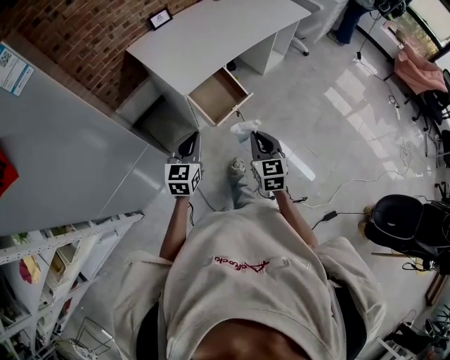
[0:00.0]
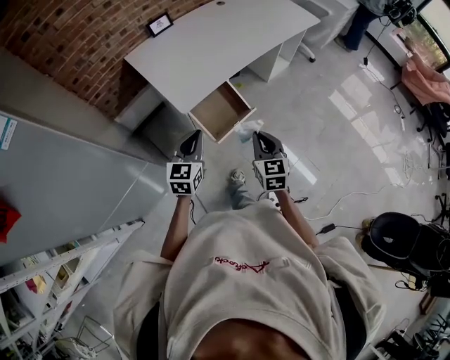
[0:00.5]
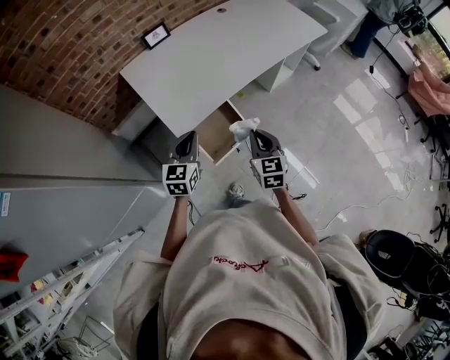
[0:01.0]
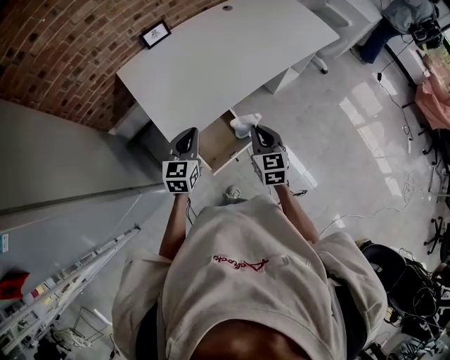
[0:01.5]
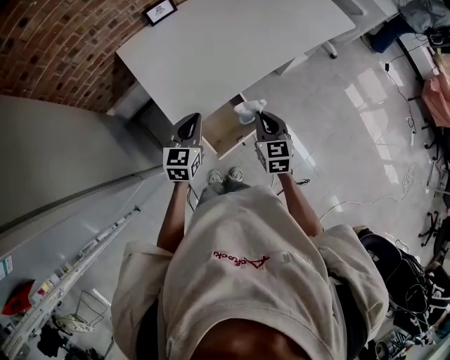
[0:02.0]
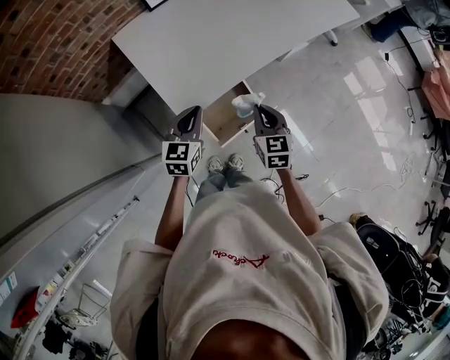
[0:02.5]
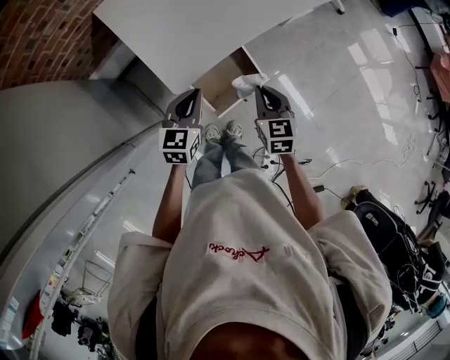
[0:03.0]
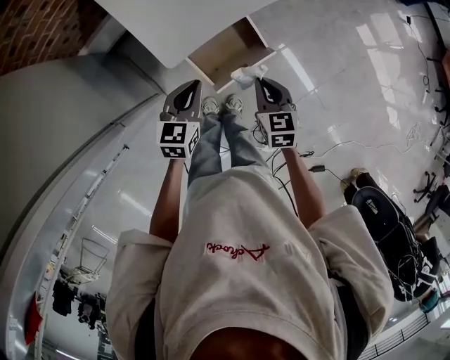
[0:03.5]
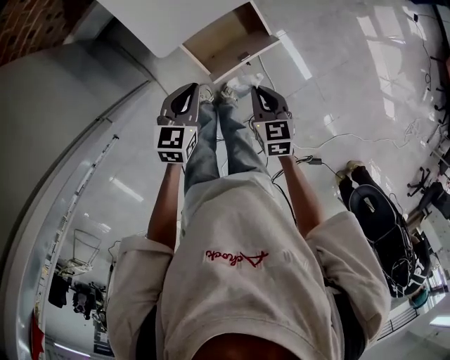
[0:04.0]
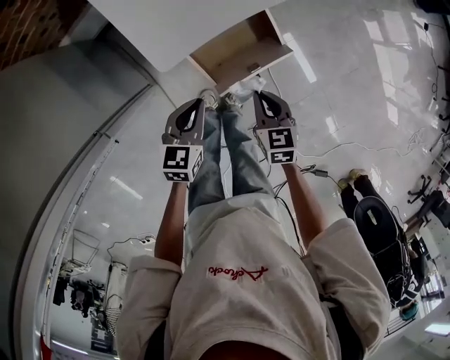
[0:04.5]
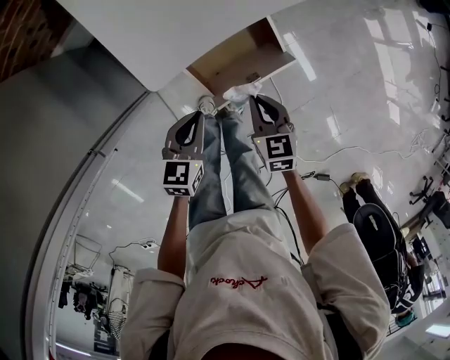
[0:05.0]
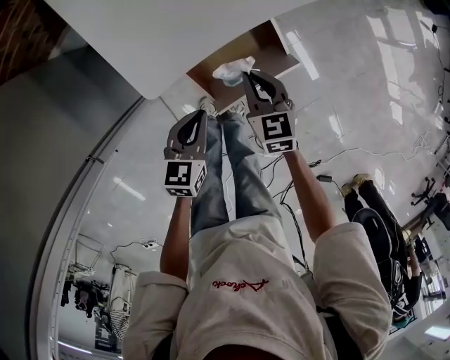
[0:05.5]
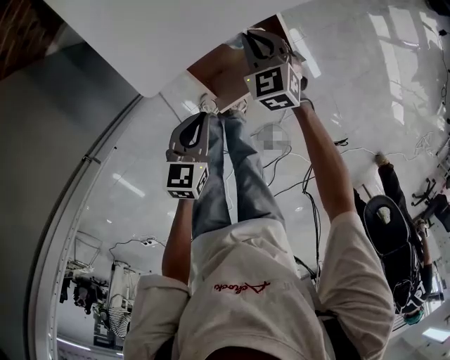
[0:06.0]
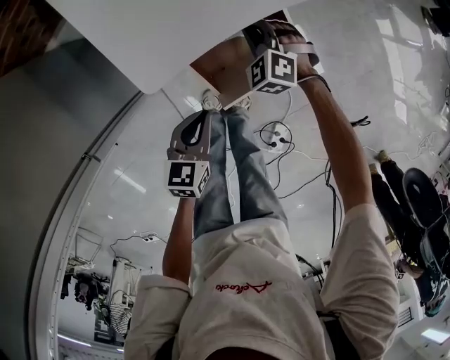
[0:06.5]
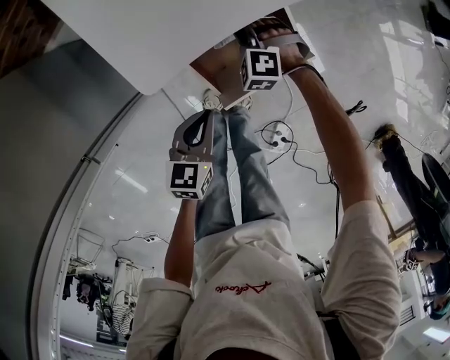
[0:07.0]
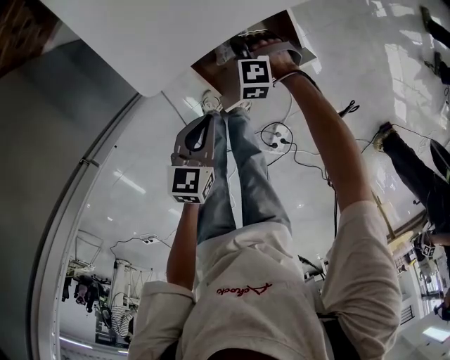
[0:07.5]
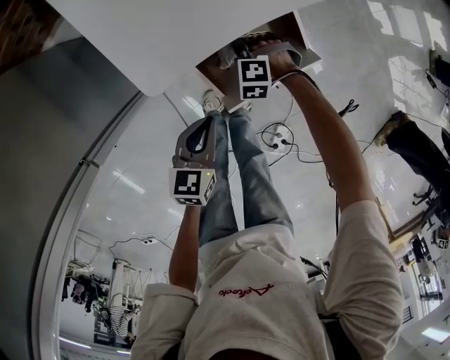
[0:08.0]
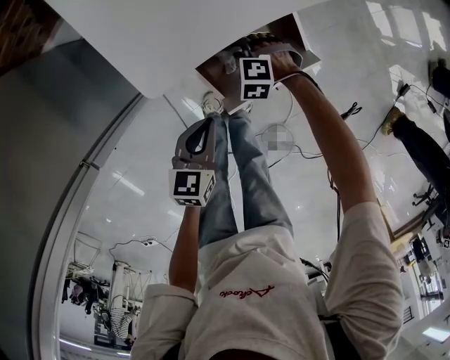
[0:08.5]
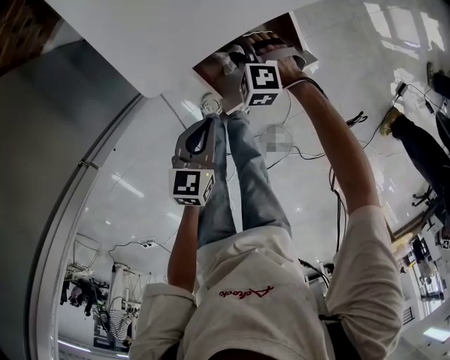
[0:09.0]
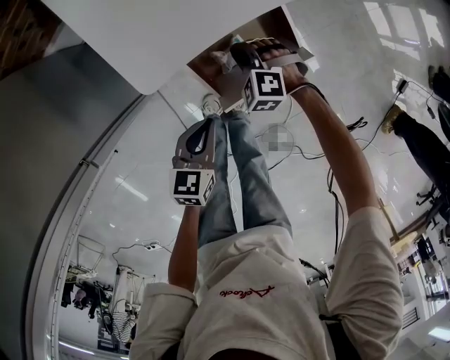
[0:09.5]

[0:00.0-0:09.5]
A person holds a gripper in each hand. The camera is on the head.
0:00.0 to 0:02.0: Both grippers move forward, about 35 cm.
0:02.0 to 0:04.0: Both grippers travel together downward and backward, approximately 20 cm. The right gripper rotates approximately 20 degrees.
0:04.0 to 0:05.5: The left gripper travels downward by roughly 10 cm. The right gripper is displaced forward, downward and to the left by roughly 15 cm.
0:05.5 to 0:07.5: The right gripper travels downward by roughly 15 cm, and rolls counterclockwise, seen from behind, by about 70 degrees.
0:07.5 to 0:09.5: The right gripper opens, then closes once more.

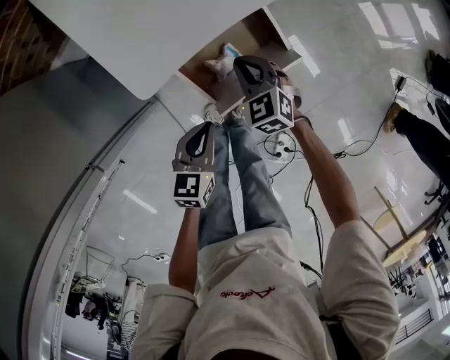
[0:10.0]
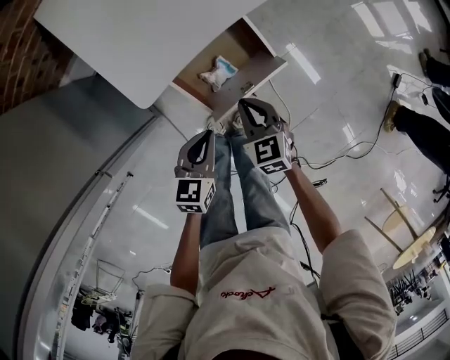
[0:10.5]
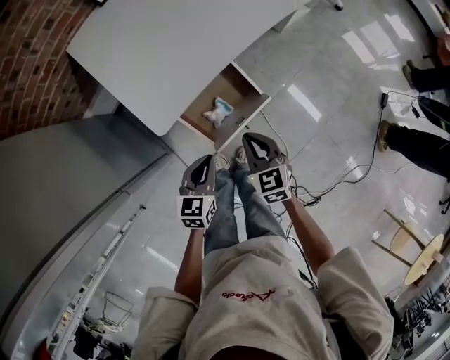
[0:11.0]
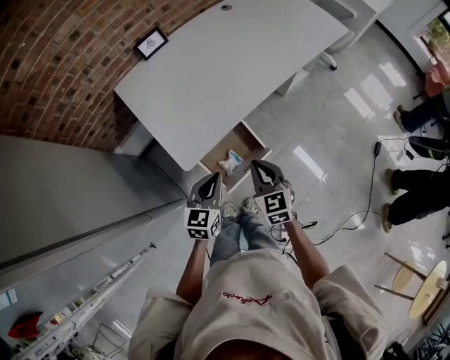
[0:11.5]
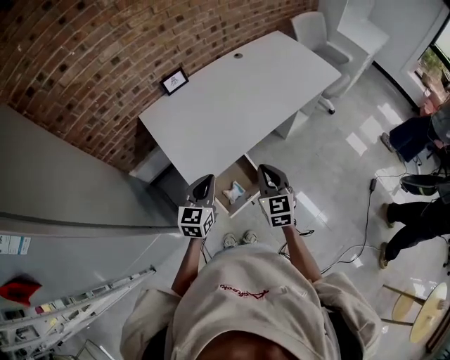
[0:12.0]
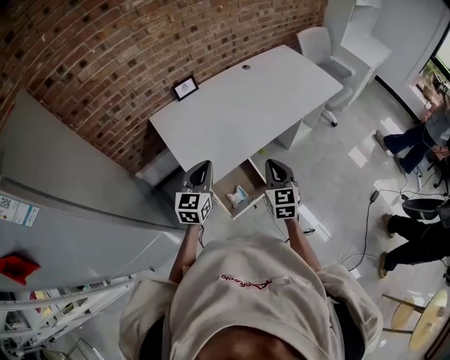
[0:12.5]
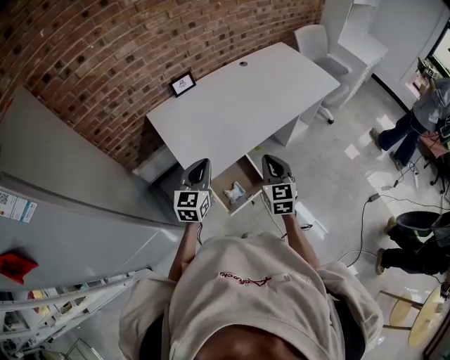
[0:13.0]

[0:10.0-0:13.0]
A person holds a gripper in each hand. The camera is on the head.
0:10.0 to 0:11.5: Both grippers travel together upward, some 25 cm. The right gripper swivels roughly 30 degrees.
0:11.5 to 0:13.0: Both grippers travel together upward, some 15 cm.

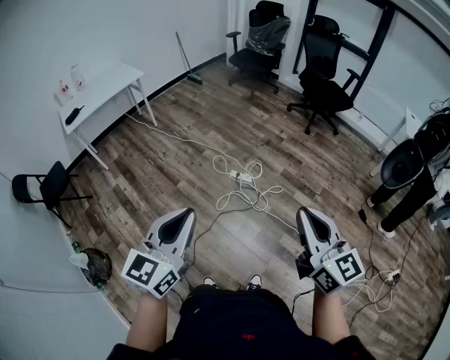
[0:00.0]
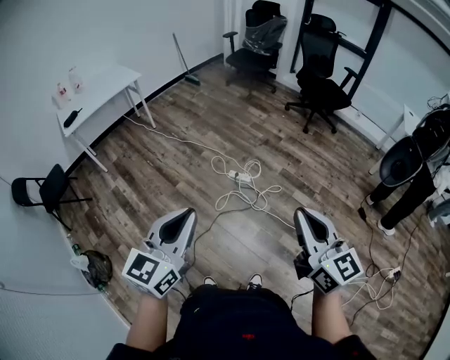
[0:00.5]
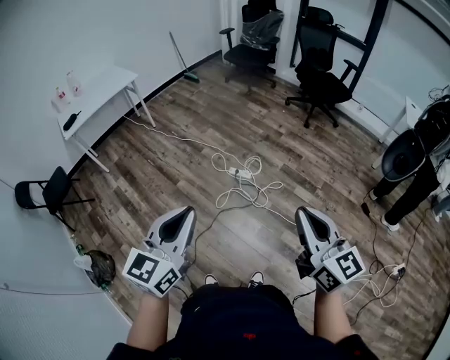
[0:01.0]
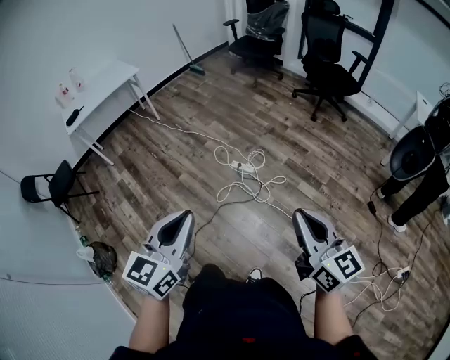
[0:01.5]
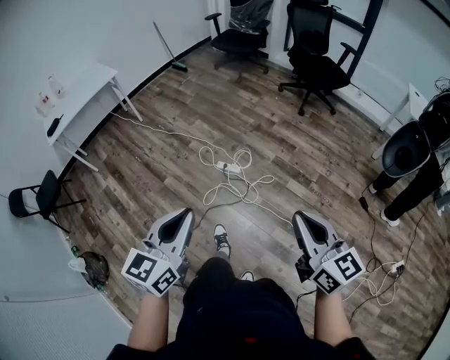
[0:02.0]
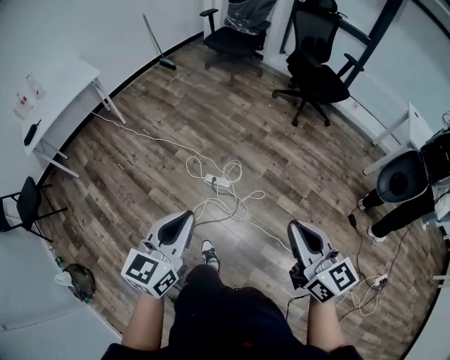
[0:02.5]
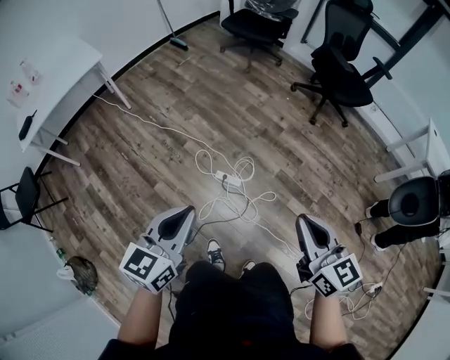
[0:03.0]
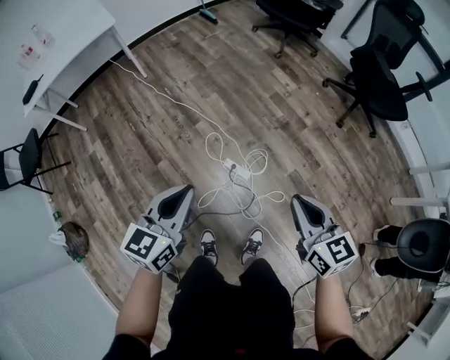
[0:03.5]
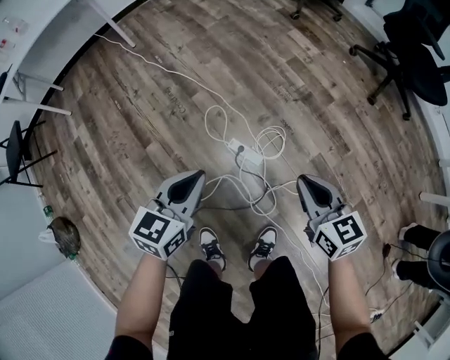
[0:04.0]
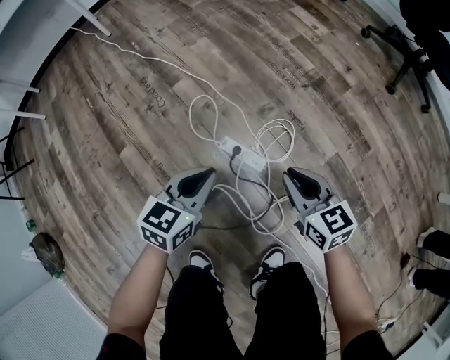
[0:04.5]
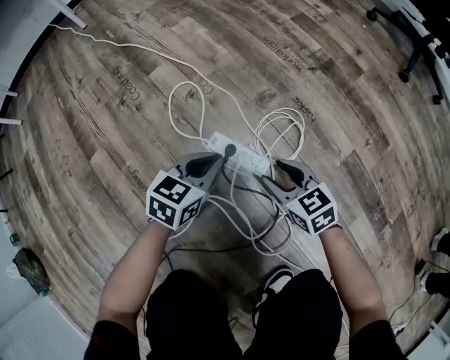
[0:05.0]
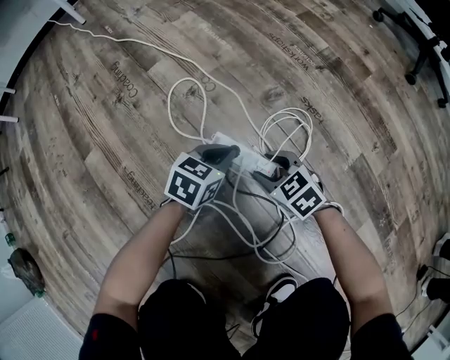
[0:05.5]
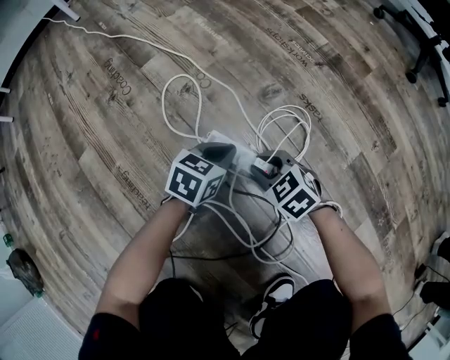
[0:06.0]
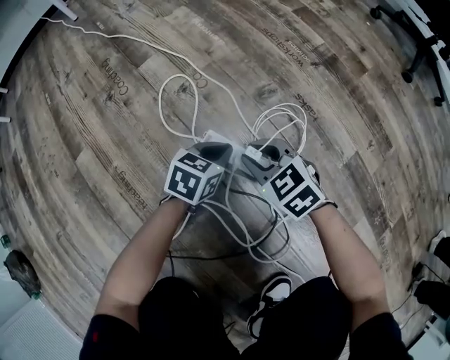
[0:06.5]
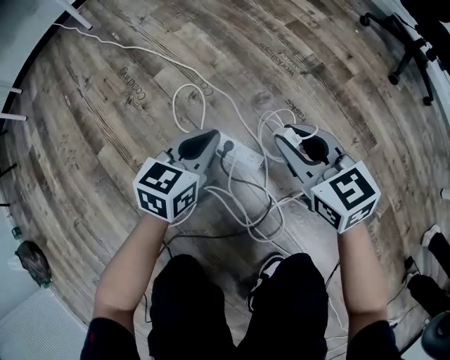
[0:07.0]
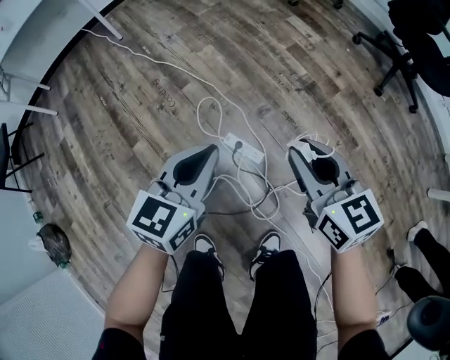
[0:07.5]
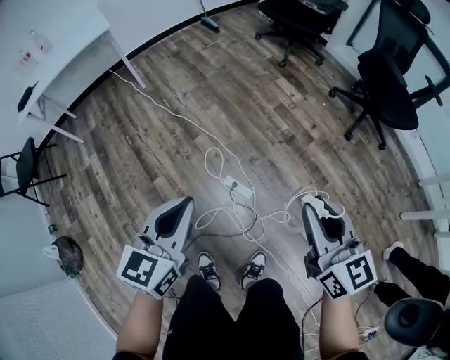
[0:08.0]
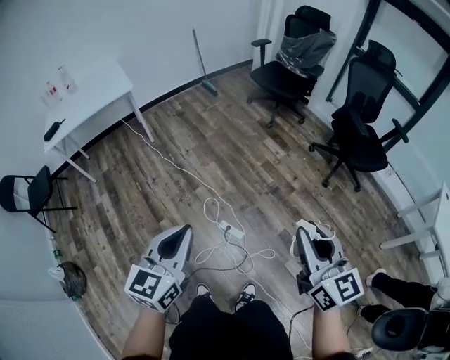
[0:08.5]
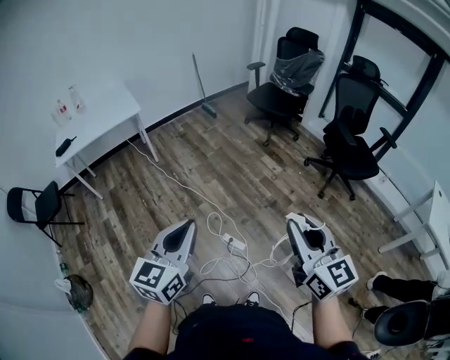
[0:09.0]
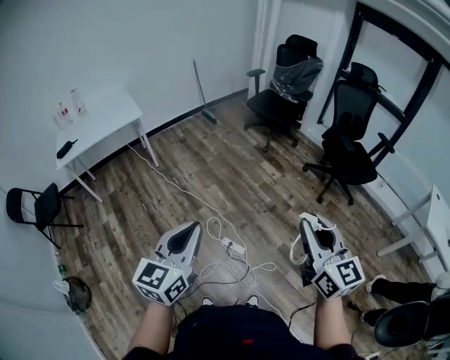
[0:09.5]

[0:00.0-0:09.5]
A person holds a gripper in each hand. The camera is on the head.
0:00.0 to 0:02.0: The right gripper travels to the right, downward and forward by about 20 cm. Meanwhile the left gripper travels to the right, forward and downward by about 20 cm.
0:02.0 to 0:04.0: Both grippers are carried forward, roughly 50 cm. Both grippers move downward, some 50 cm. The right gripper turns by about 30 degrees.
0:04.0 to 0:05.5: The grippers both shift downward by some 60 cm. The left gripper swivels about 20 degrees. The right gripper rotates some 40 degrees, and opens its fingers.
0:05.5 to 0:07.5: Both grippers travel together upward, roughly 50 cm. The left gripper rotates approximately 30 degrees, while the right gripper changes its angle by roughly 40 degrees, and closes its fingers.
0:07.5 to 0:09.5: The grippers both shift upward by some 60 cm. The right gripper changes its angle by roughly 30 degrees.

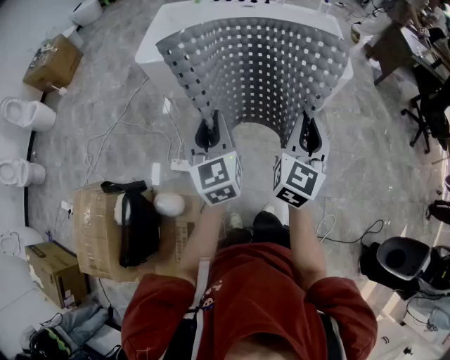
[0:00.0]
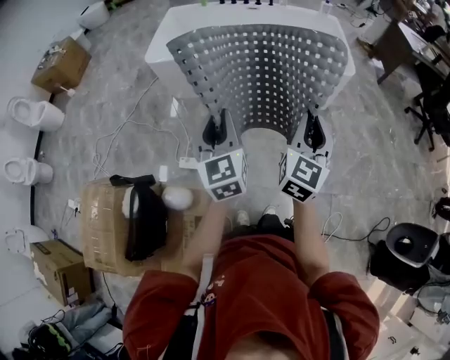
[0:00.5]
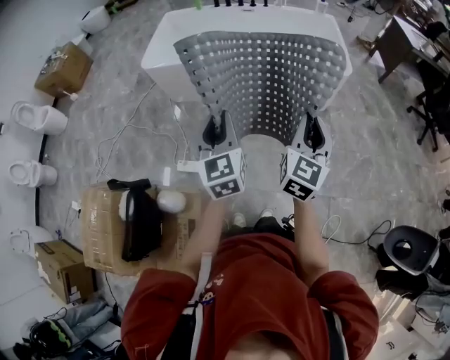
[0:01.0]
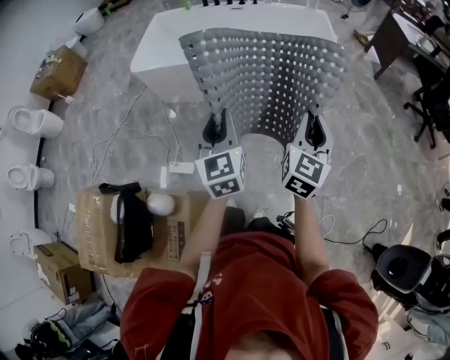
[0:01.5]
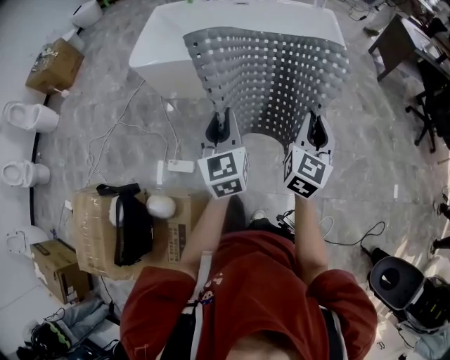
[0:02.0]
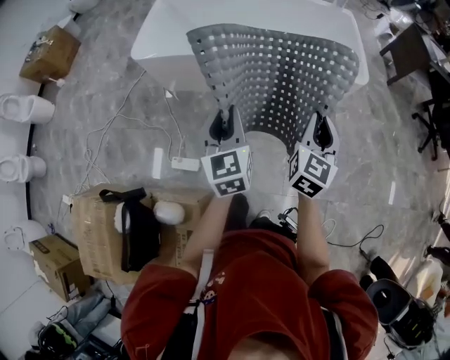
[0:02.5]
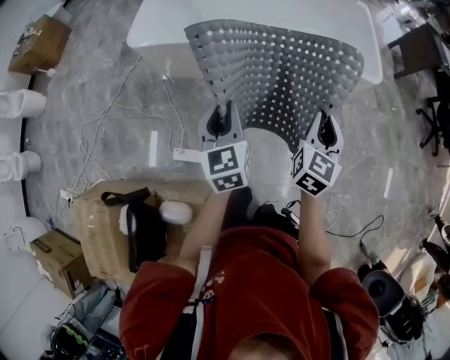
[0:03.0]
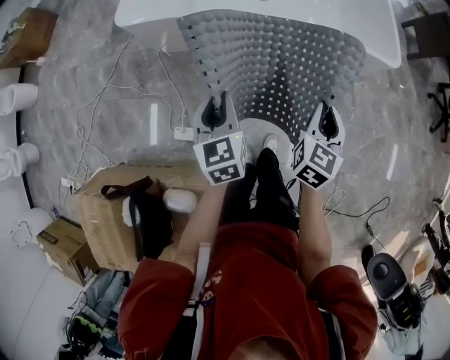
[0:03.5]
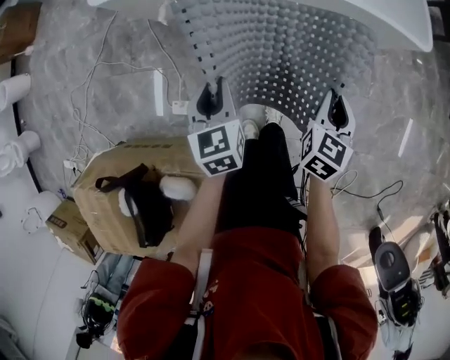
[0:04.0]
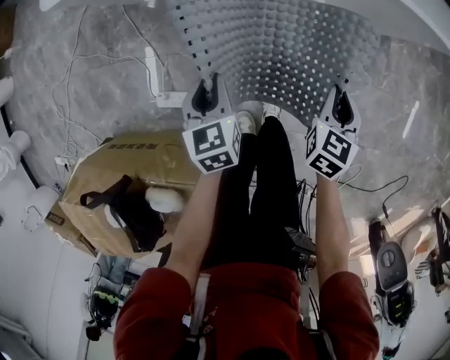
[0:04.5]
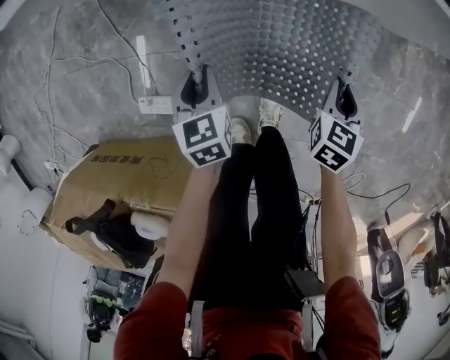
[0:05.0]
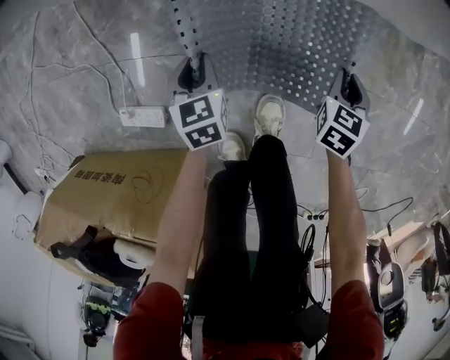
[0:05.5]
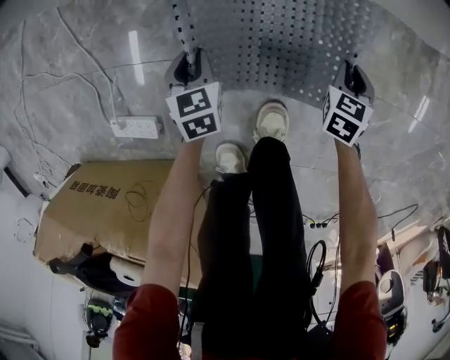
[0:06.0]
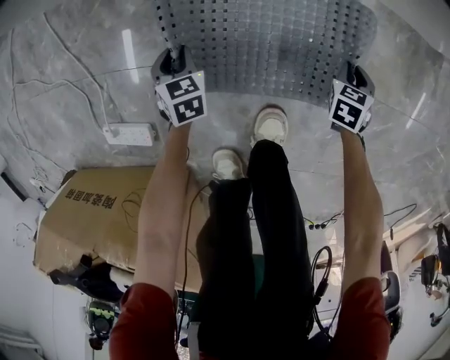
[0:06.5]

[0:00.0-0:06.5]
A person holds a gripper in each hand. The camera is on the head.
0:00.0 to 0:02.0: The left gripper is displaced to the right by about 10 cm, while the right gripper heads to the right, forward and downward, covering about 15 cm.
0:02.0 to 0:04.5: The left gripper is displaced downward, forward and to the left by some 50 cm, and tilts its fingers some 30 degrees downward; the right gripper goes about 50 cm downward and forward, and tips its fingers downward by about 40 degrees.
0:04.5 to 0:06.5: Both grippers move downward, approximately 50 cm. The right gripper changes its angle by approximately 20 degrees. Meanwhile the left gripper changes its angle by some 20 degrees.
